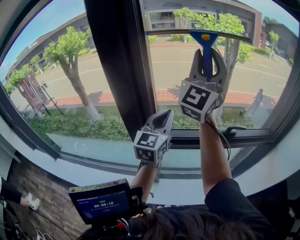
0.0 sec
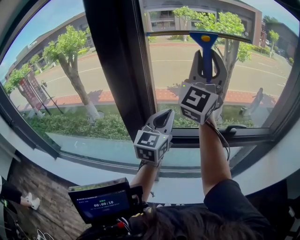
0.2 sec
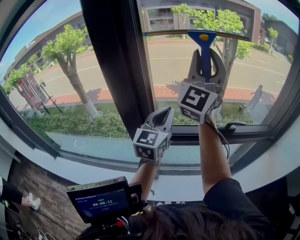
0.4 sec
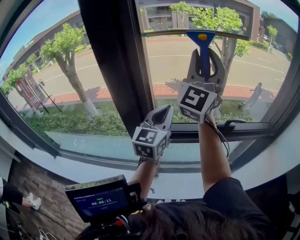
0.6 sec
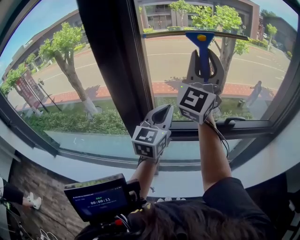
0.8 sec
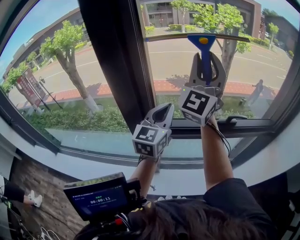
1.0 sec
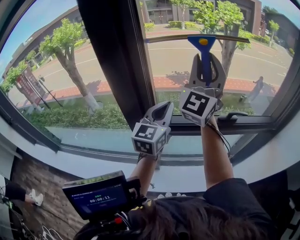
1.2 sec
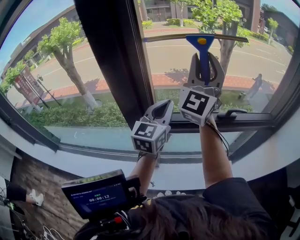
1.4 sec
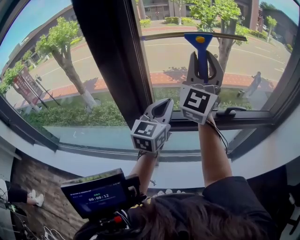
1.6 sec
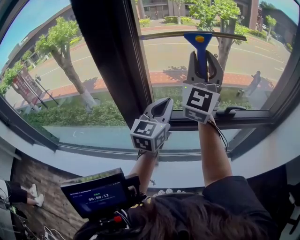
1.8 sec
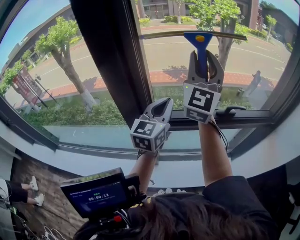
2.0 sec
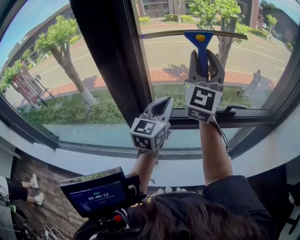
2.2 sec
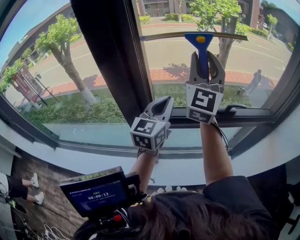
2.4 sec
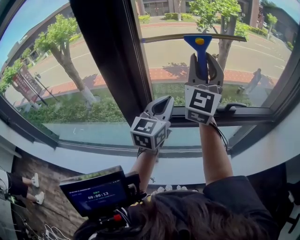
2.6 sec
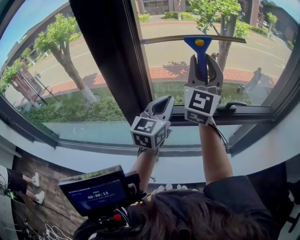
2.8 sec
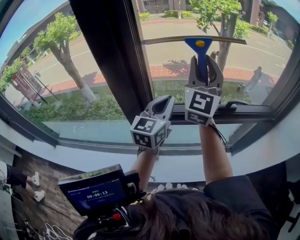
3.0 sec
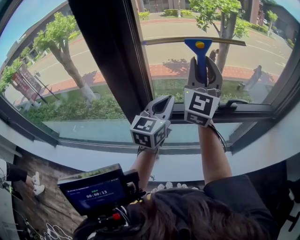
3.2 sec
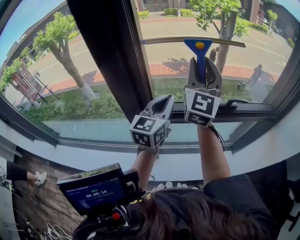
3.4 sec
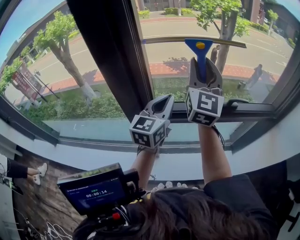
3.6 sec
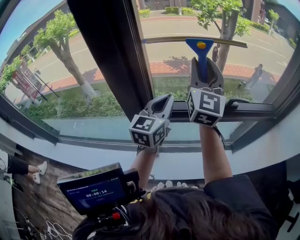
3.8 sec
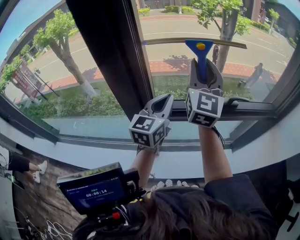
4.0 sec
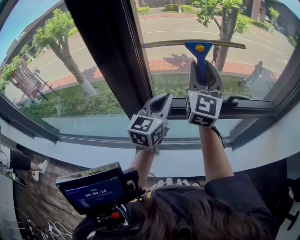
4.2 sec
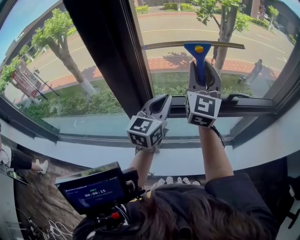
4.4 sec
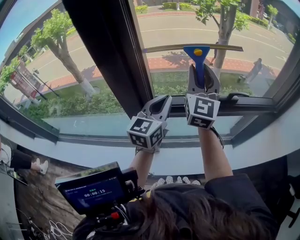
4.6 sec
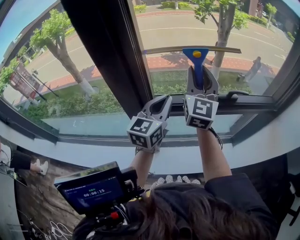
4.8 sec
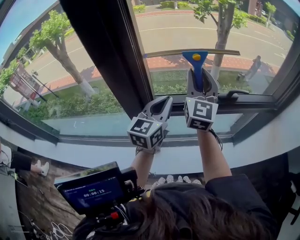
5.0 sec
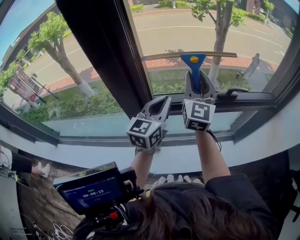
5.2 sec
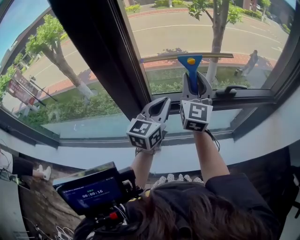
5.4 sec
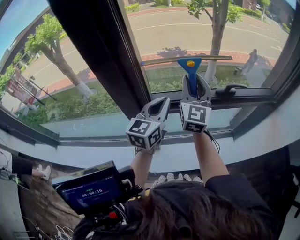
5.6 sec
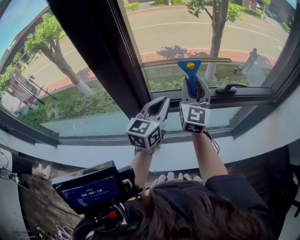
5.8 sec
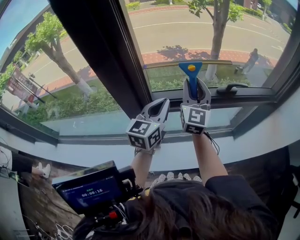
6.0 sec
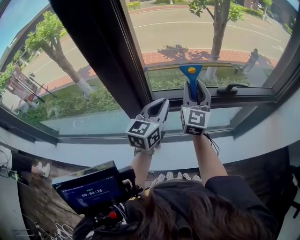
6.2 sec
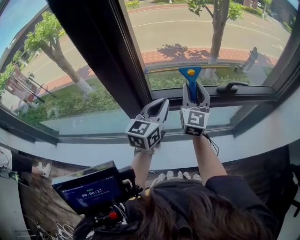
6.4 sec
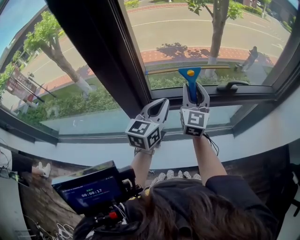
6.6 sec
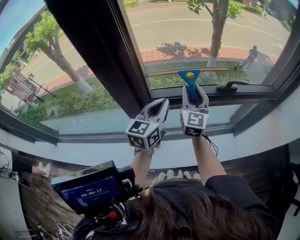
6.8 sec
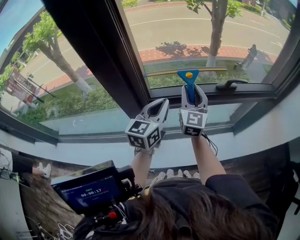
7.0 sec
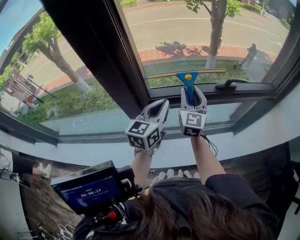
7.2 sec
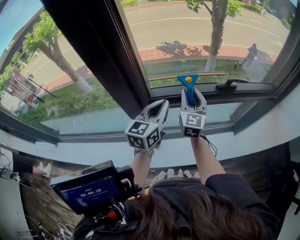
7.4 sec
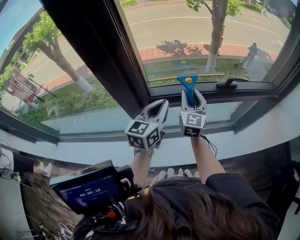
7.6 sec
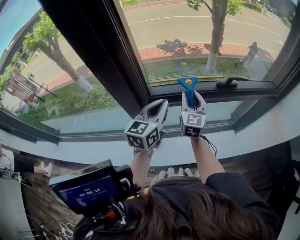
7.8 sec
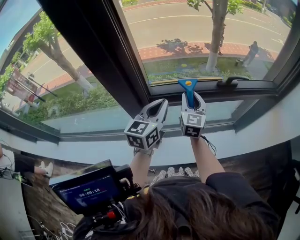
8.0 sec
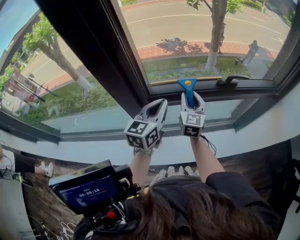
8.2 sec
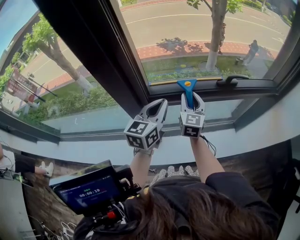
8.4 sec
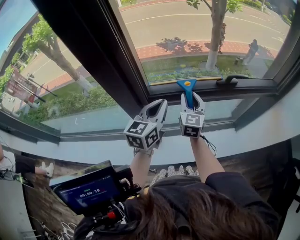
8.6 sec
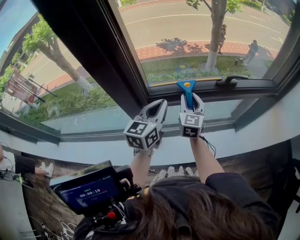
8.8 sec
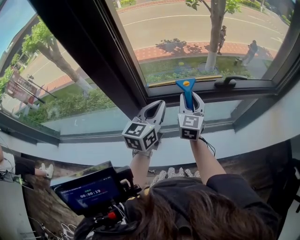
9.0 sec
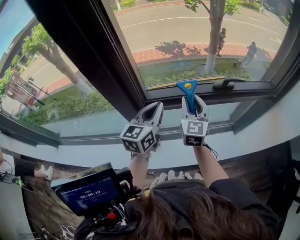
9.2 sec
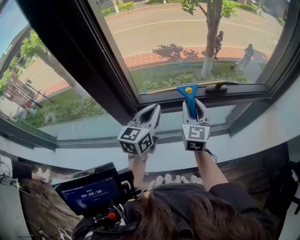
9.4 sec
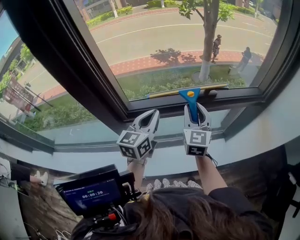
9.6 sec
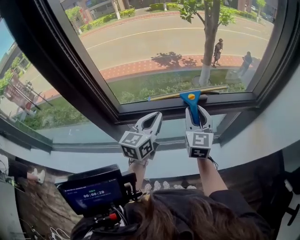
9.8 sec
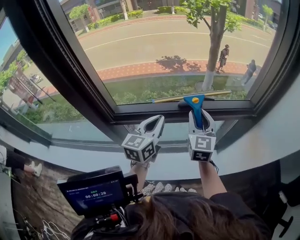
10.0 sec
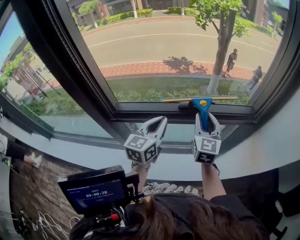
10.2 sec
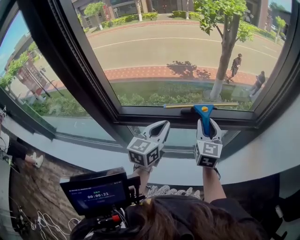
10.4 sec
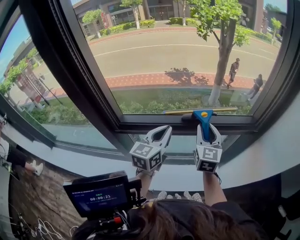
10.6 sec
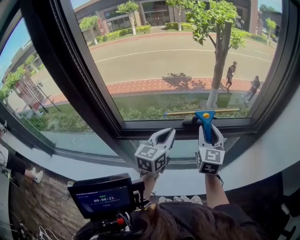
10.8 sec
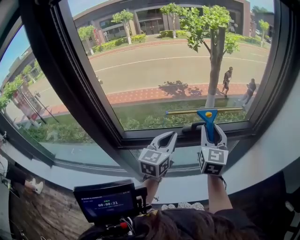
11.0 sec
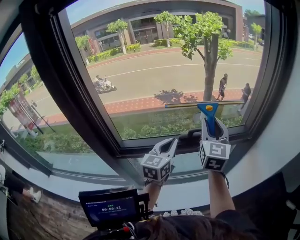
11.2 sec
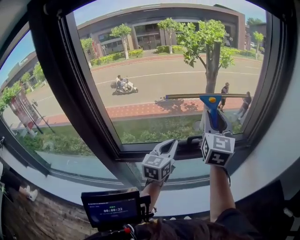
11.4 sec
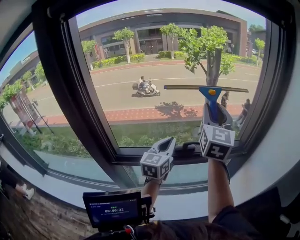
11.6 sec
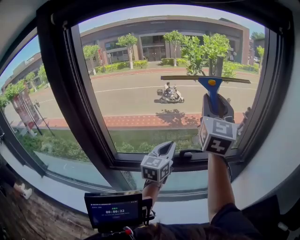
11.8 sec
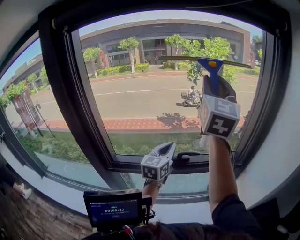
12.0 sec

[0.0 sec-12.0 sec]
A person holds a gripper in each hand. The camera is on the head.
0.0 sec to 1.6 sec: The right gripper heads downward, covering some 10 cm.
1.6 sec to 3.0 sec: The grippers make only small movements.
3.0 sec to 4.4 sec: The right gripper travels downward by about 5 cm.
4.4 sec to 6.0 sec: The left gripper moves approximately 5 cm. The right gripper moves downward, roughly 10 cm.
6.0 sec to 7.6 sec: The right gripper goes approximately 10 cm downward.
7.6 sec to 9.0 sec: The grippers make only small movements.
9.0 sec to 10.4 sec: The grippers both shift to the right by approximately 20 cm.
10.4 sec to 12.0 sec: The right gripper moves upward, about 40 cm, and angles its fingers upward, by approximately 30 degrees, while the left gripper goes about 10 cm forward and upward.

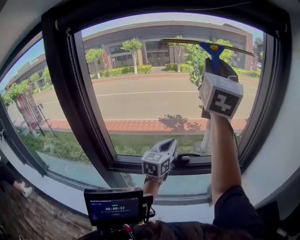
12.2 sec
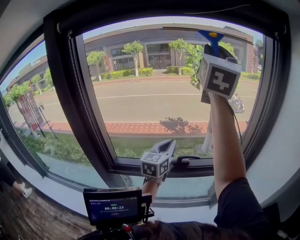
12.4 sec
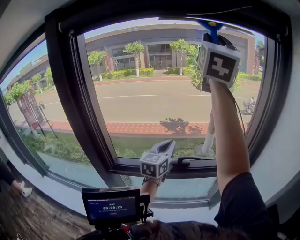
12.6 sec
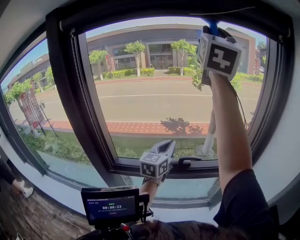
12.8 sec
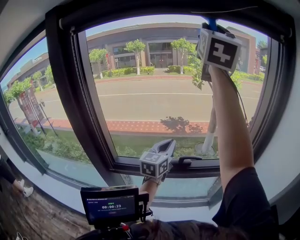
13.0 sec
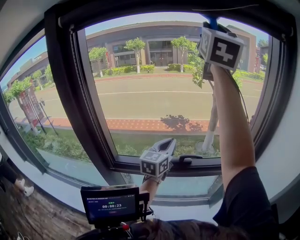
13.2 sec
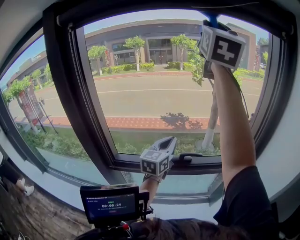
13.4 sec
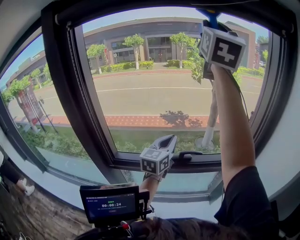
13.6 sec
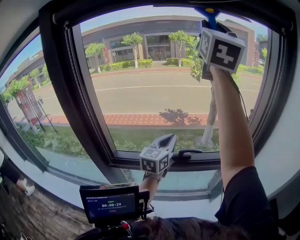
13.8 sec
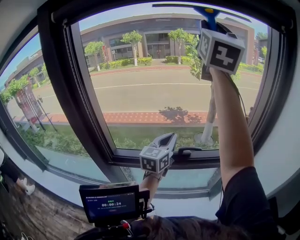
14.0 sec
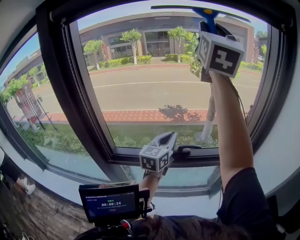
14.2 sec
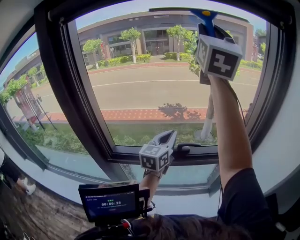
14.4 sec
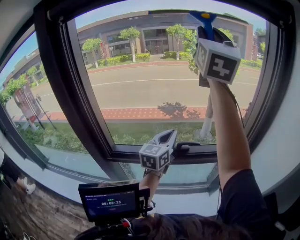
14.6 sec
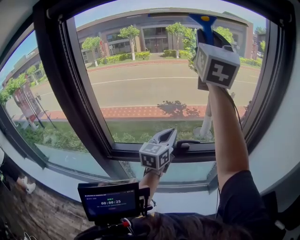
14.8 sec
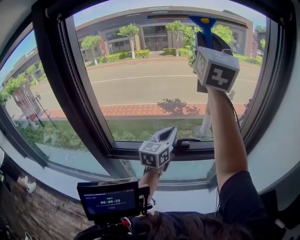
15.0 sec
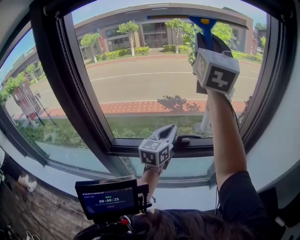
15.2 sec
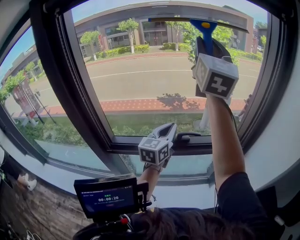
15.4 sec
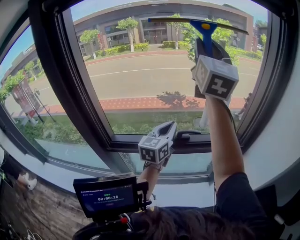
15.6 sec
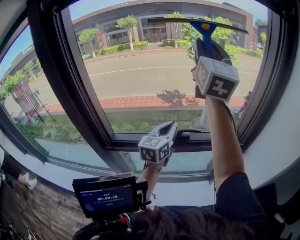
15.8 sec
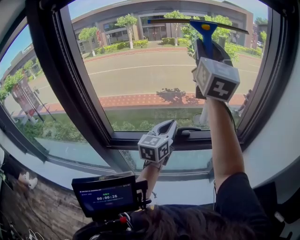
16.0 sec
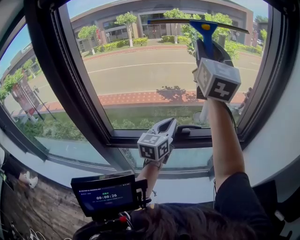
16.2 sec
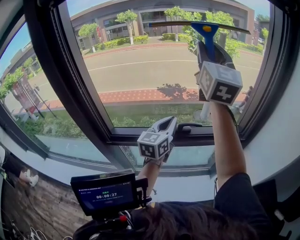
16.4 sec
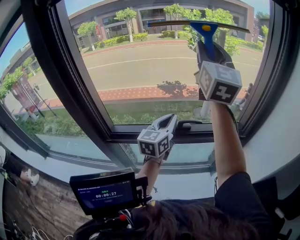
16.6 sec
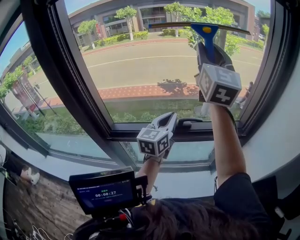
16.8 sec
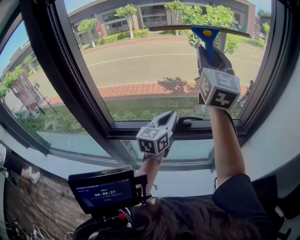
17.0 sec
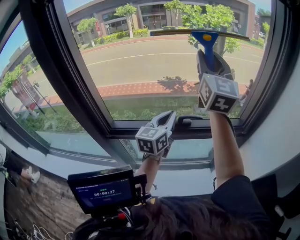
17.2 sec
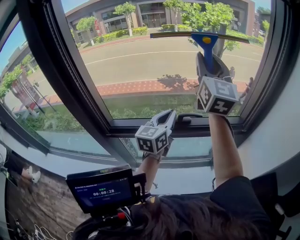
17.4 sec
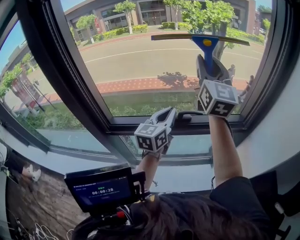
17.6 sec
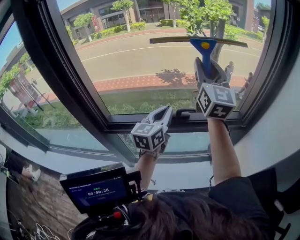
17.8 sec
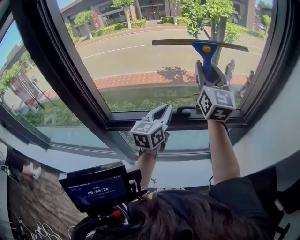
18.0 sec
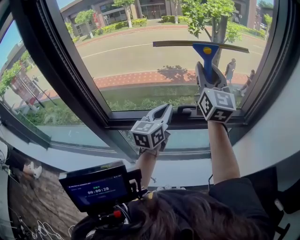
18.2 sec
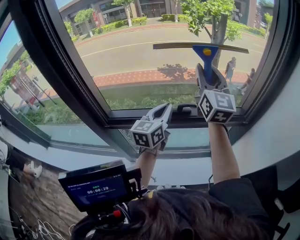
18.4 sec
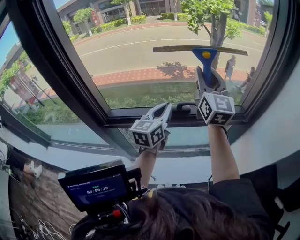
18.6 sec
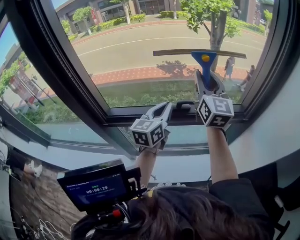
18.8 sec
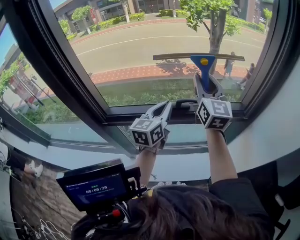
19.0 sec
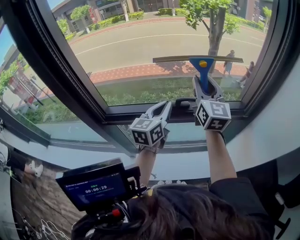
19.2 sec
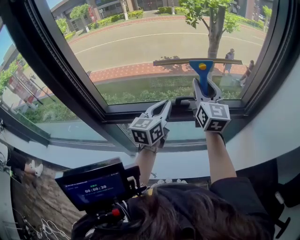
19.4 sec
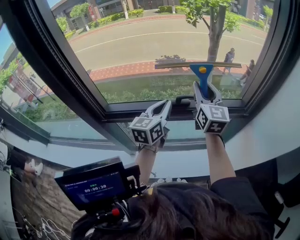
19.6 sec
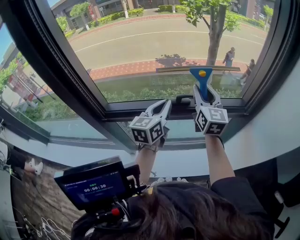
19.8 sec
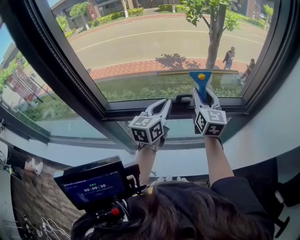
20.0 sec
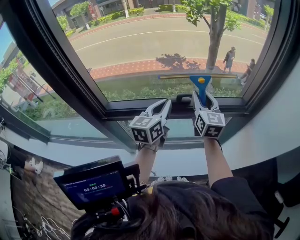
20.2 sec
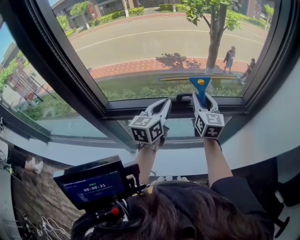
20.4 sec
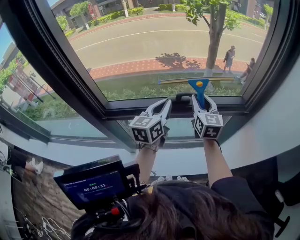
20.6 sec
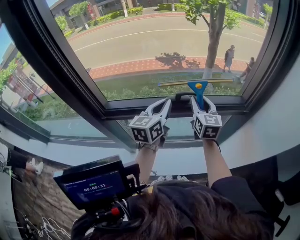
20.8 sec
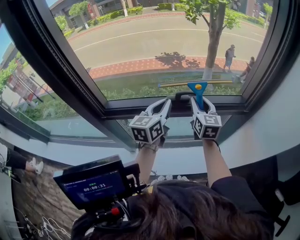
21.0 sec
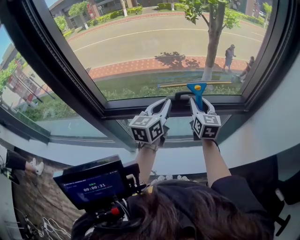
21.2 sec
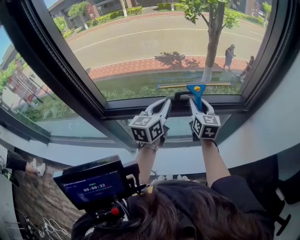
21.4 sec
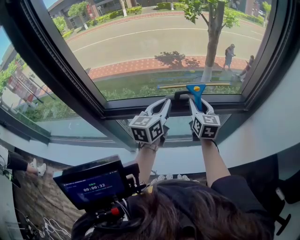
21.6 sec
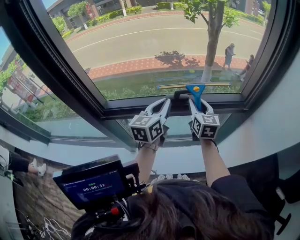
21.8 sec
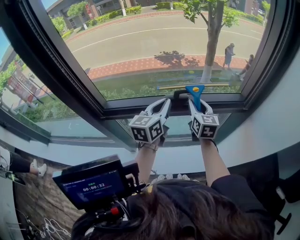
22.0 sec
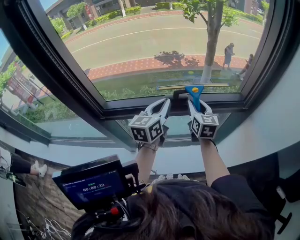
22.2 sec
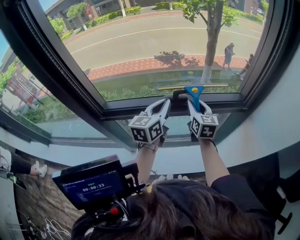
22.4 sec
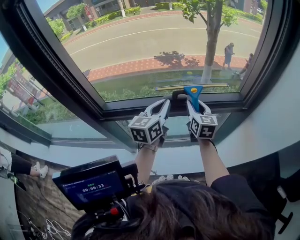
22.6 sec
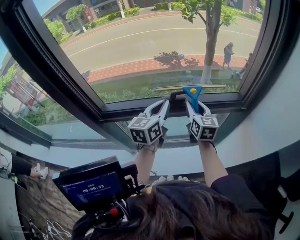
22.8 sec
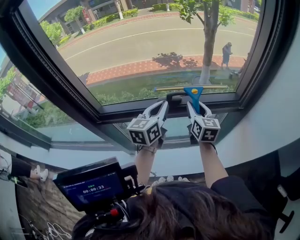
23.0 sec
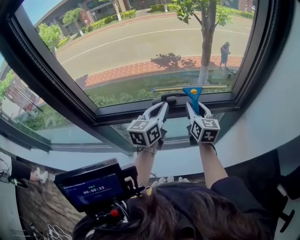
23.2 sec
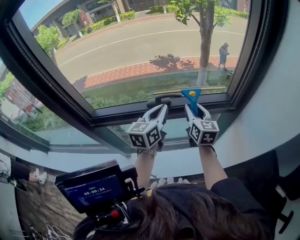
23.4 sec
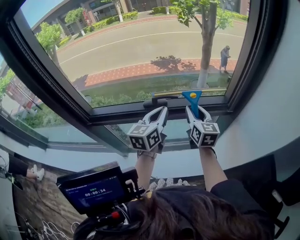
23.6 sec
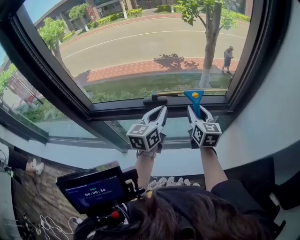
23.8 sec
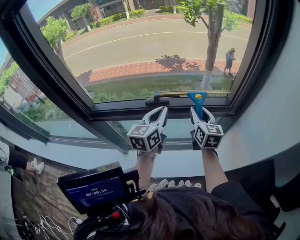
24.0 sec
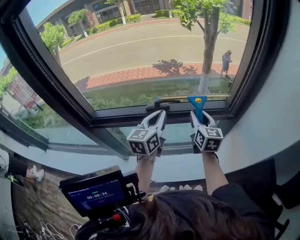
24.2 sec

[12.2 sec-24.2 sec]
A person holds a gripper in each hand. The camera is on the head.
12.2 sec to 13.8 sec: The right gripper moves upward, approximately 10 cm.
13.8 sec to 15.2 sec: The right gripper heads downward, covering about 10 cm.
15.2 sec to 16.6 sec: The right gripper is displaced downward by about 10 cm.
16.6 sec to 18.2 sec: The right gripper is displaced downward by approximately 15 cm.
18.2 sec to 19.8 sec: The right gripper is displaced downward by approximately 15 cm.
19.8 sec to 21.2 sec: The right gripper shifts roughly 10 cm downward.
21.2 sec to 22.6 sec: The grippers move only a little.
22.6 sec to 24.2 sec: The right gripper shifts roughly 10 cm to the right, while the left gripper goes approximately 5 cm to the right.
